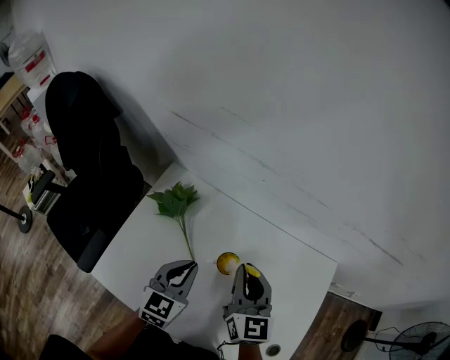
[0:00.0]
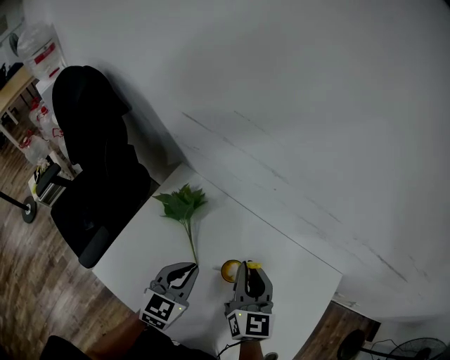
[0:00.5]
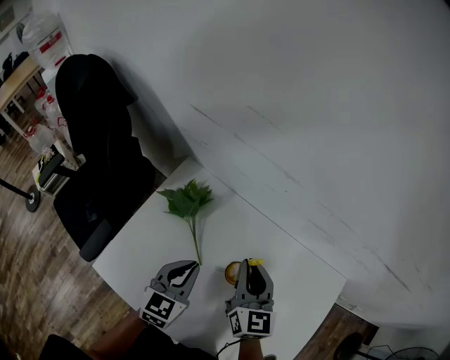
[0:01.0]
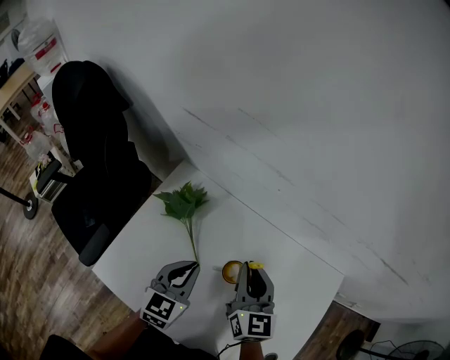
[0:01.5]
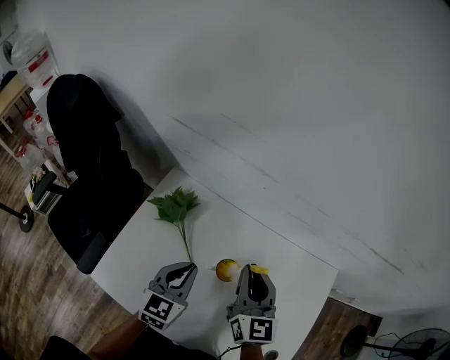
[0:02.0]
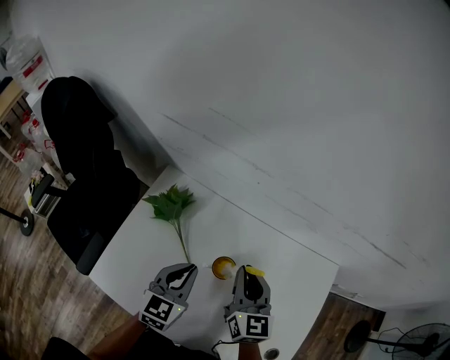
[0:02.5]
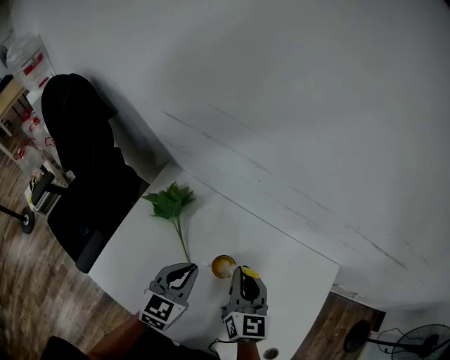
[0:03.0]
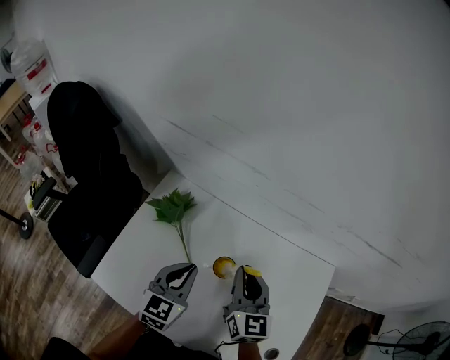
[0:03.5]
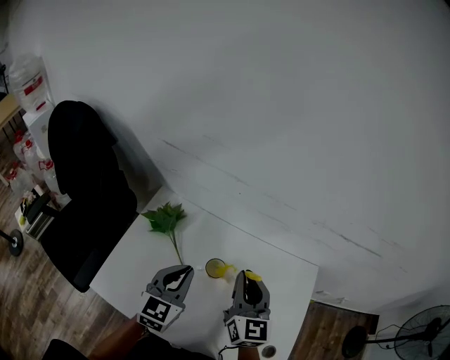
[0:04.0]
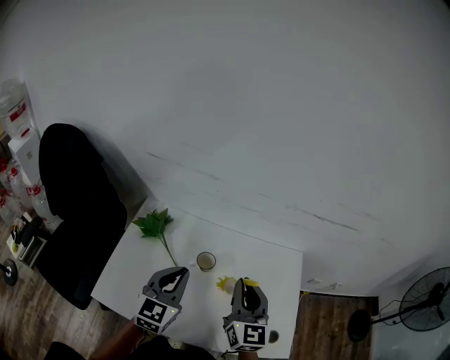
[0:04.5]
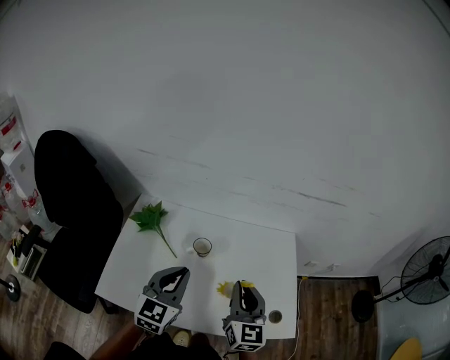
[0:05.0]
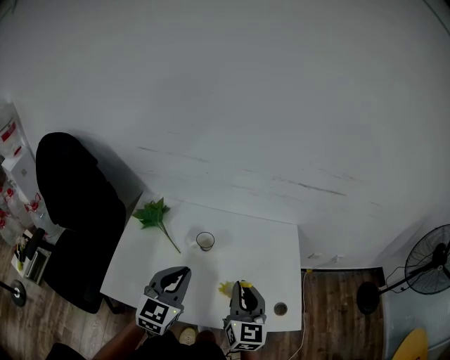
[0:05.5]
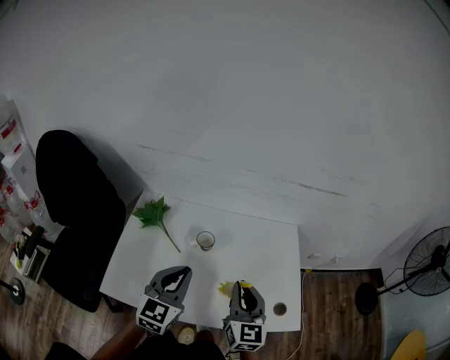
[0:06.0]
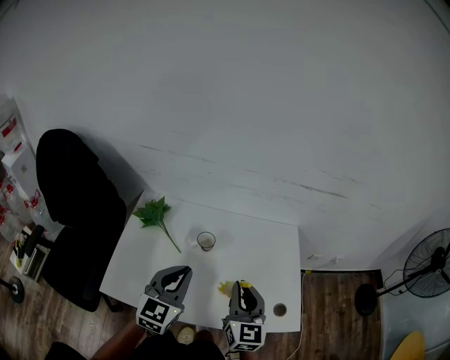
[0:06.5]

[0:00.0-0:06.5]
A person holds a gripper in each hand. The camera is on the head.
0:02.0 to 0:04.5: The right gripper goes about 20 cm backward and upward. The left gripper goes approximately 15 cm upward and backward.
0:04.5 to 0:06.5: The grippers both shift backward by some 10 cm.

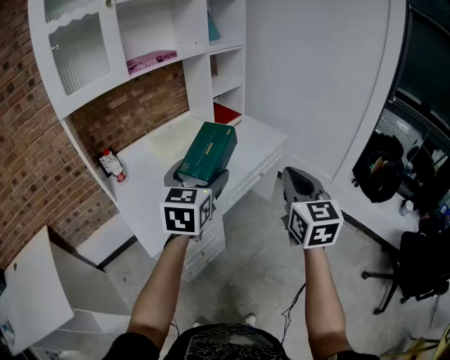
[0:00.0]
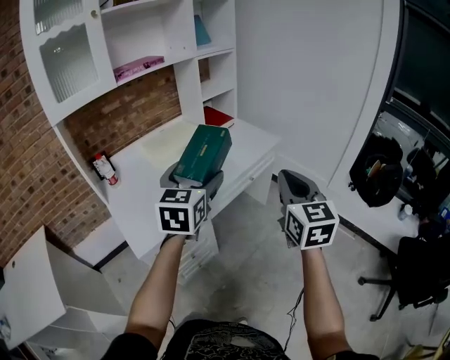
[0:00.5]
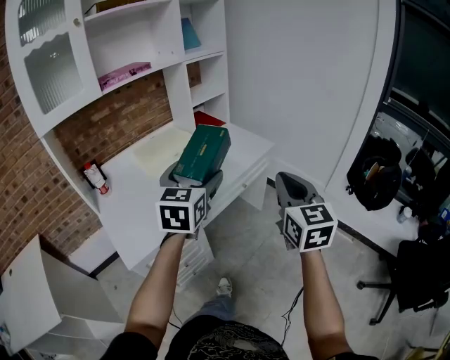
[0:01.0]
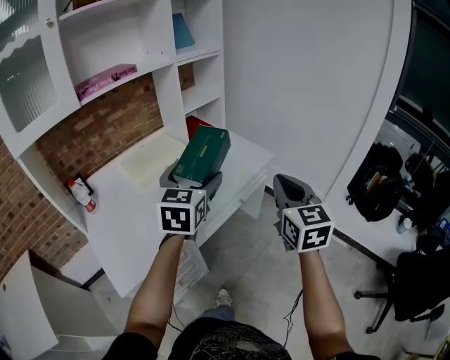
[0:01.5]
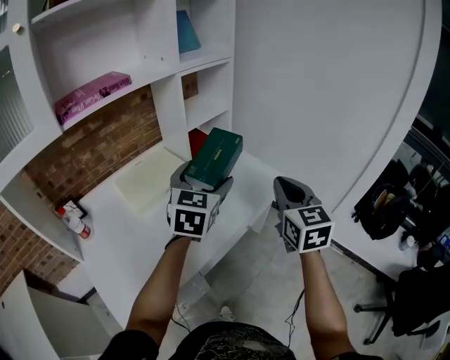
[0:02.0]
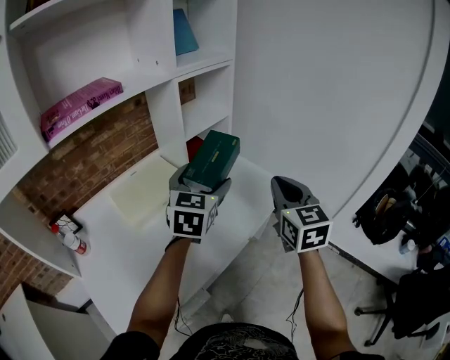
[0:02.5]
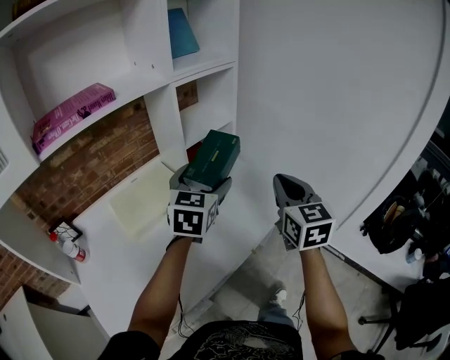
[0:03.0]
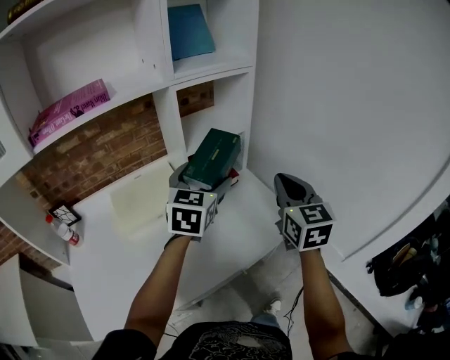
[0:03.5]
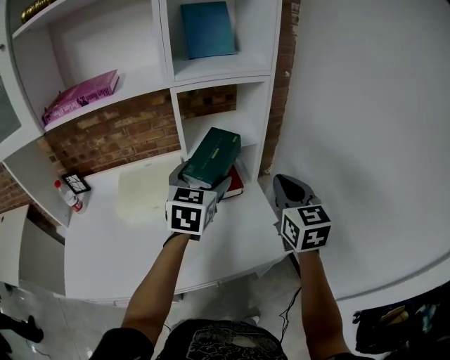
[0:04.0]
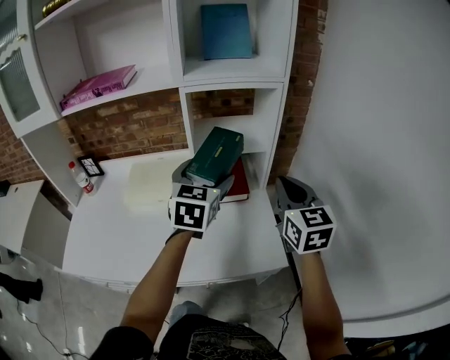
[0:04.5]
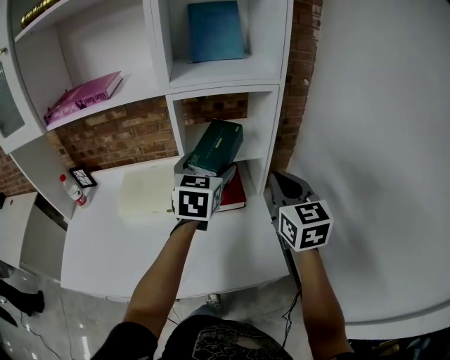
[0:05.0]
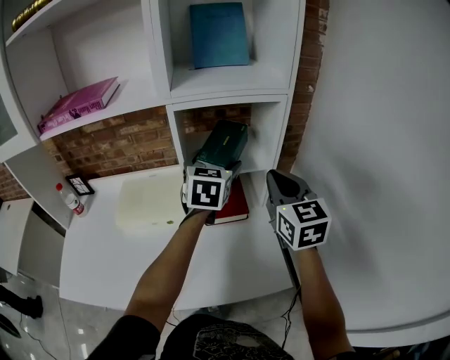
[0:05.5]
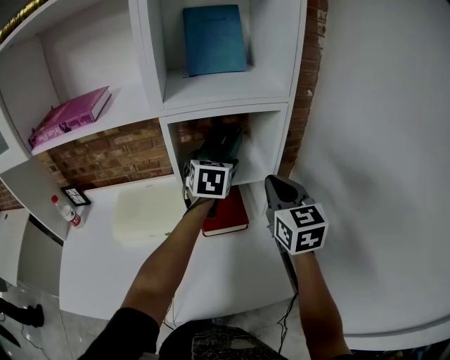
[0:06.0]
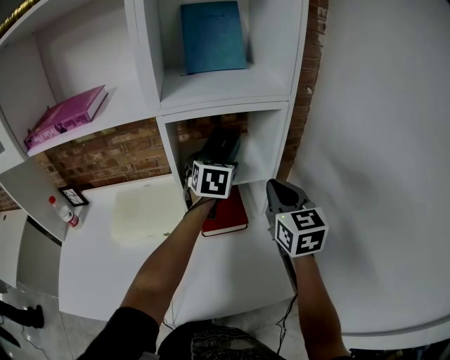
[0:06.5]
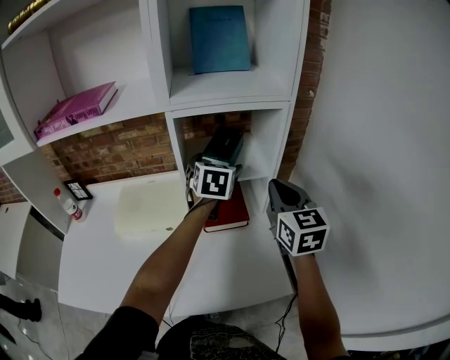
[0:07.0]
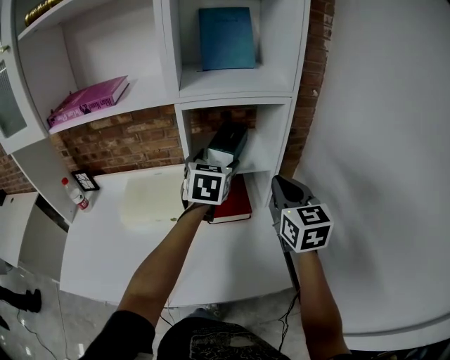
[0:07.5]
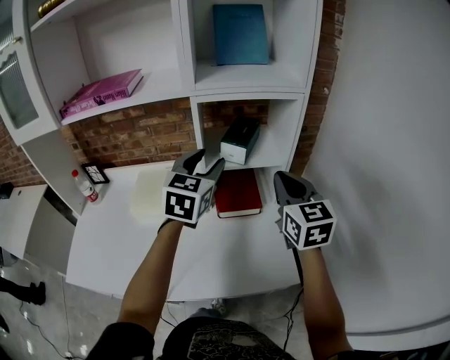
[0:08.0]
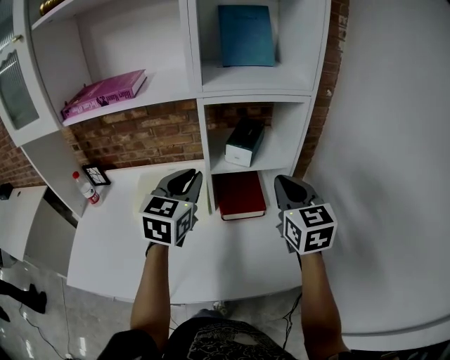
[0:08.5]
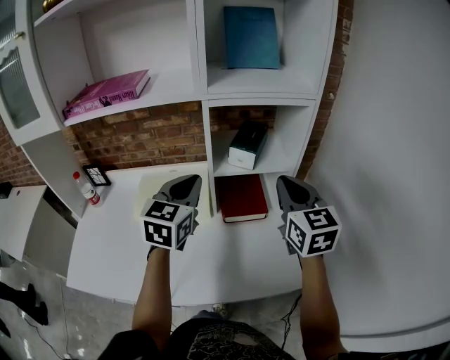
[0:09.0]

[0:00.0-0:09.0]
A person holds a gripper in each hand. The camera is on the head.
0:00.0 to 0:02.0: The grippers both shift forward by approximately 30 cm.
0:02.0 to 0:04.5: The right gripper moves roughly 35 cm, and changes its angle by roughly 40 degrees. Meanwhile the left gripper ends up roughly 25 cm from where it was, and changes its angle by some 40 degrees.
0:04.5 to 0:07.0: The left gripper heads forward, covering approximately 20 cm. The right gripper heads forward, covering about 10 cm.
0:07.0 to 0:09.0: The right gripper is displaced to the left by approximately 5 cm, while the left gripper travels backward and to the left by some 20 cm, and closes up.

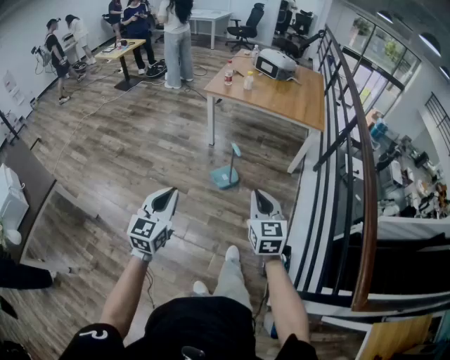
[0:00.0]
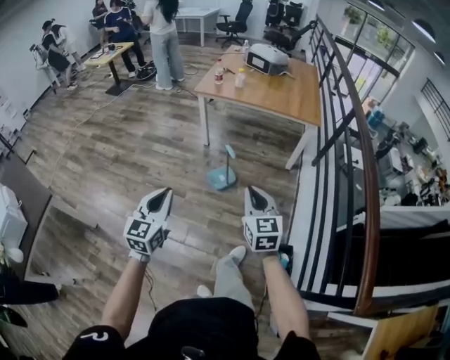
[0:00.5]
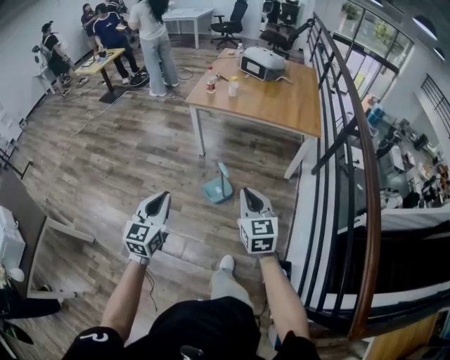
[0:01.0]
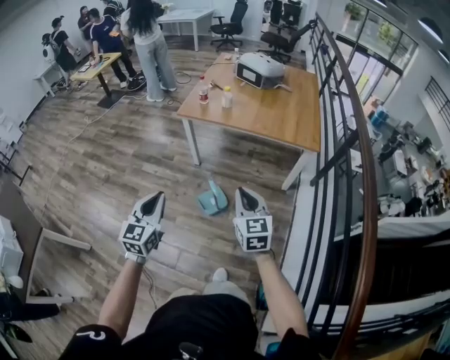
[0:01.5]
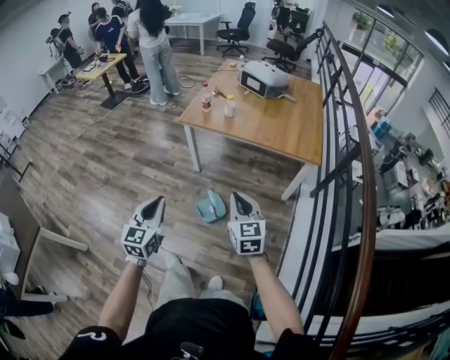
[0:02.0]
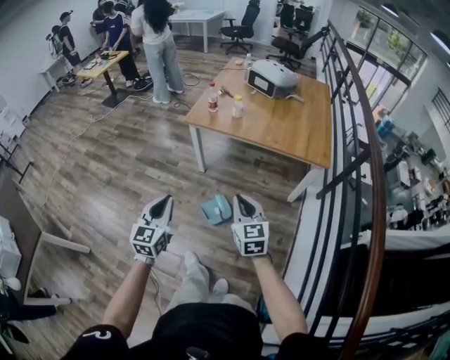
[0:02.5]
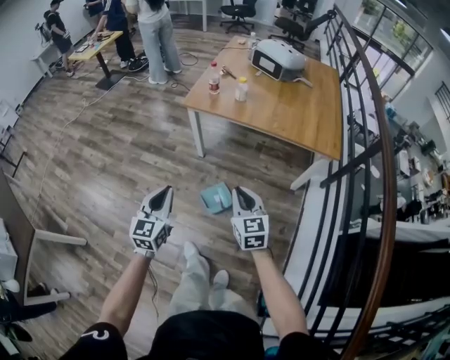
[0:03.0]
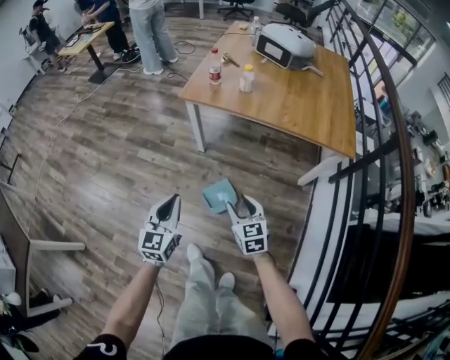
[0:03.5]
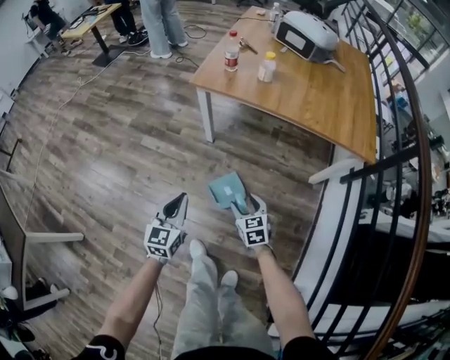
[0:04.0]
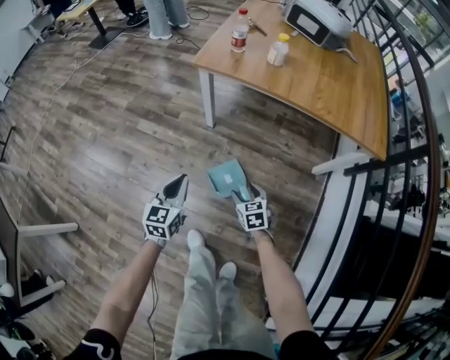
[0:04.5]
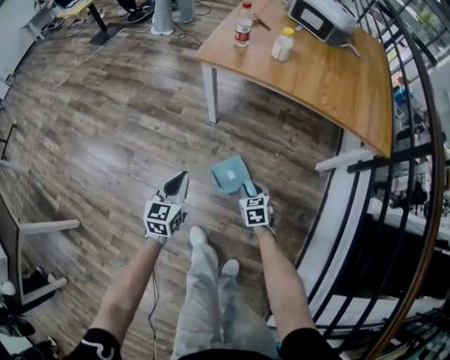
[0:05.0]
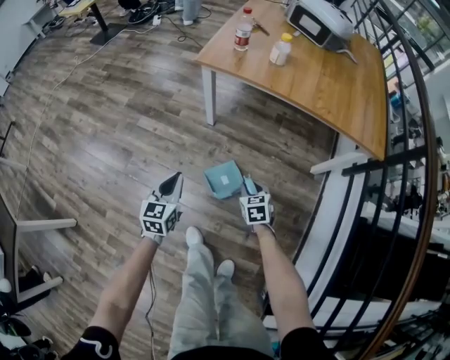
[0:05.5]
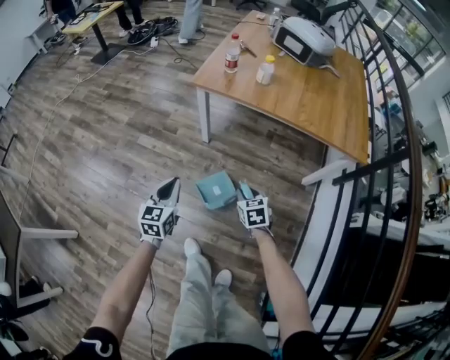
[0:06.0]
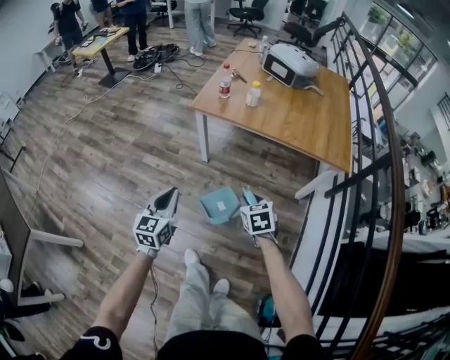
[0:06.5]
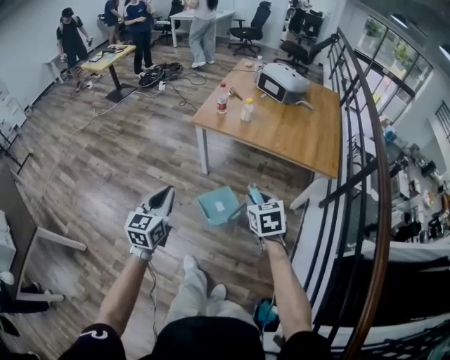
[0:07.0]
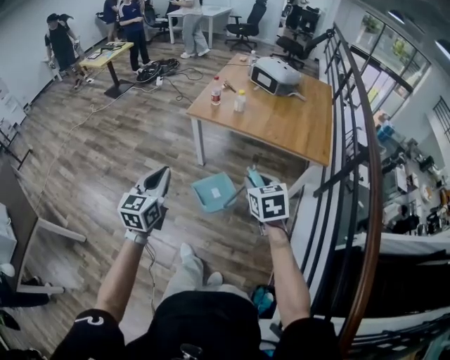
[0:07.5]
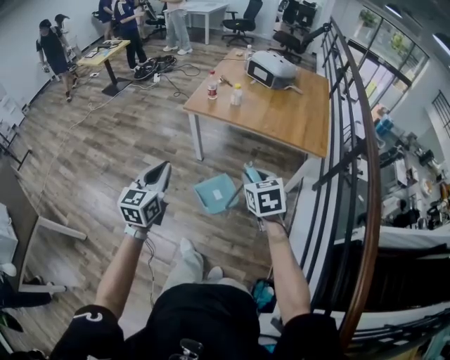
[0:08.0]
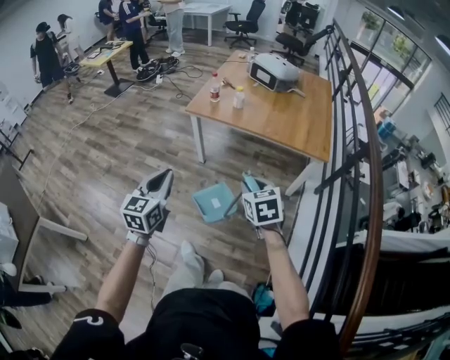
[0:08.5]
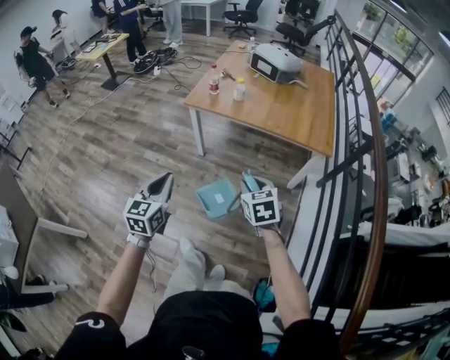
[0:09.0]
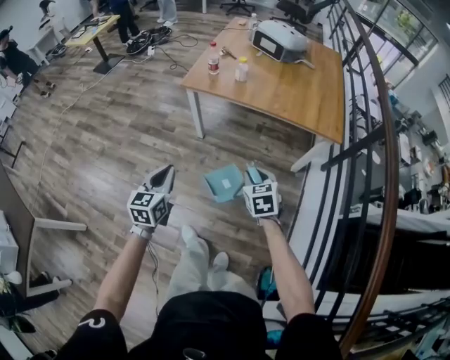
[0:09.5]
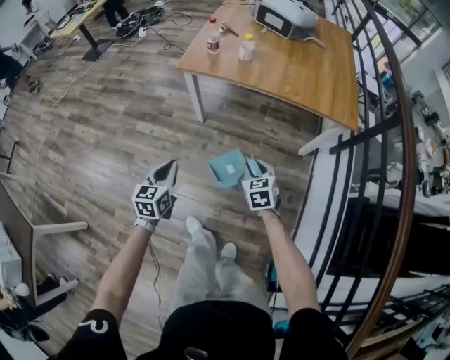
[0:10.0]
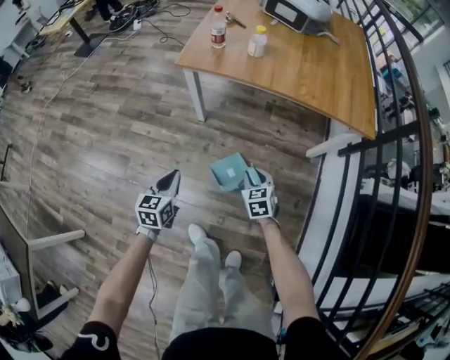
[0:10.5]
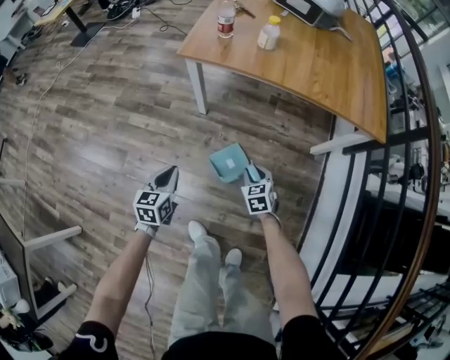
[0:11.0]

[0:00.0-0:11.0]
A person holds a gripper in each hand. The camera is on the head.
0:00.0 to 0:02.0: Both grippers travel together forward, about 35 cm.
0:02.0 to 0:03.5: The two grippers go some 25 cm downward and forward. The right gripper opens.
0:03.5 to 0:05.5: The right gripper is displaced downward by about 20 cm, swivels roughly 20 degrees, and closes its fingers; the left gripper moves downward and forward, about 20 cm.
0:05.5 to 0:07.5: The left gripper travels upward and backward by about 40 cm. The right gripper heads upward, covering some 50 cm.
0:07.5 to 0:09.0: Both grippers travel together downward, some 5 cm.
0:09.0 to 0:11.0: Both grippers move downward and forward, about 40 cm.
